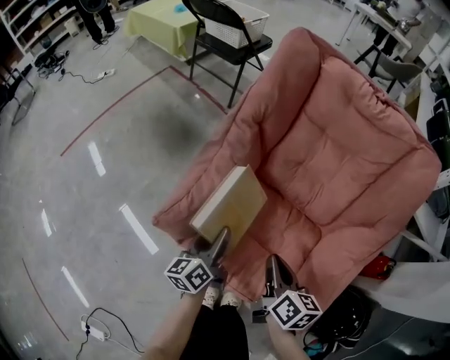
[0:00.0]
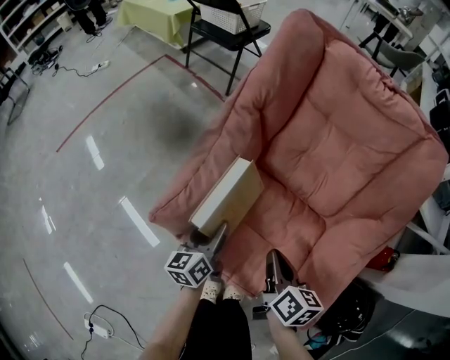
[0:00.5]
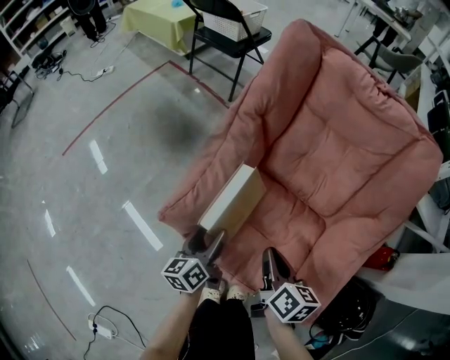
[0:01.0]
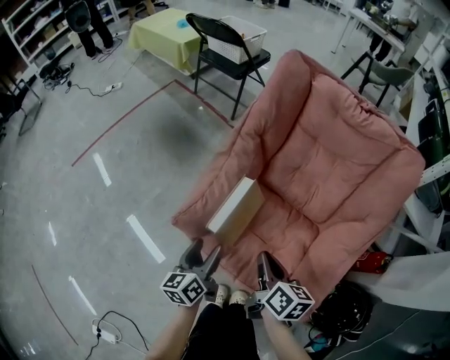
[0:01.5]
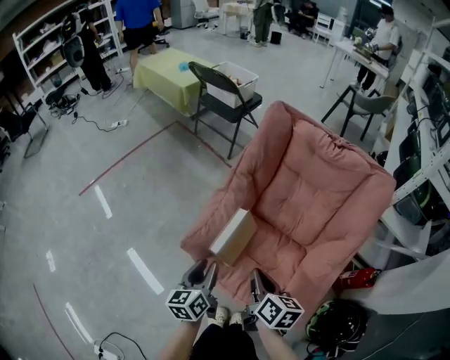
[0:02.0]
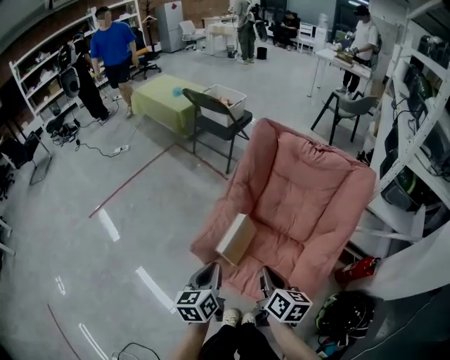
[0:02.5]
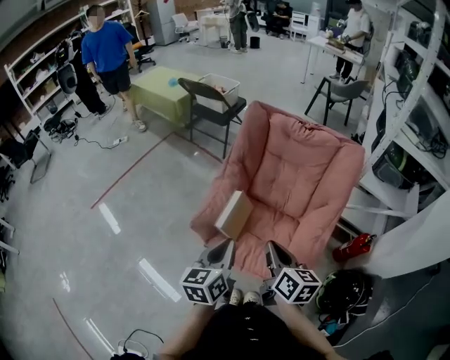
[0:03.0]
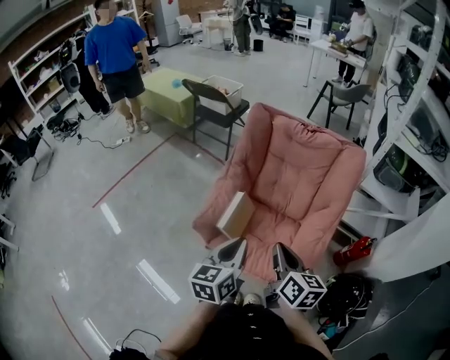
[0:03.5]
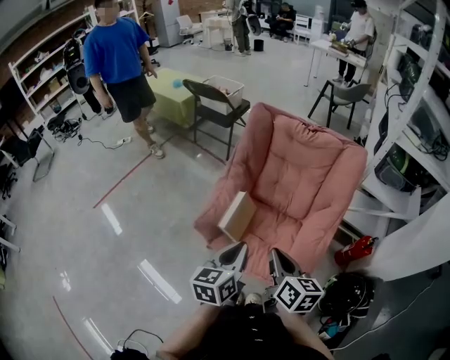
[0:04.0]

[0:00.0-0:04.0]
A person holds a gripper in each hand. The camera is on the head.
0:00.0 to 0:02.0: The right gripper moves upward and to the left, about 15 cm, while the left gripper shifts about 20 cm upward and backward.
0:02.0 to 0:04.0: The left gripper moves upward, to the right and backward, some 25 cm, changes its angle by some 20 degrees, and closes up. Meanwhile the right gripper goes roughly 20 cm upward and backward.

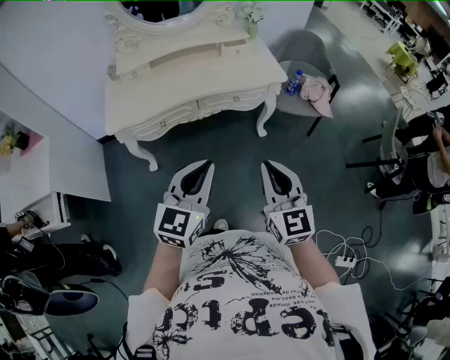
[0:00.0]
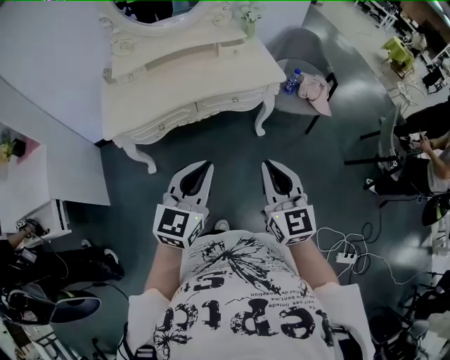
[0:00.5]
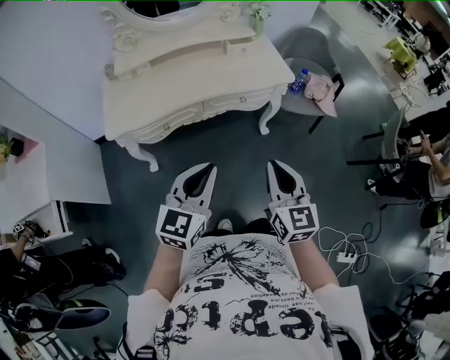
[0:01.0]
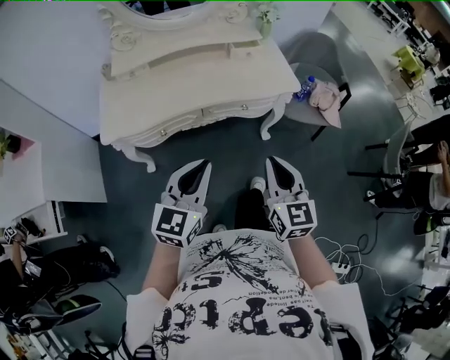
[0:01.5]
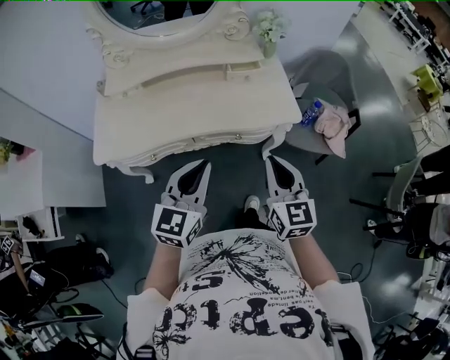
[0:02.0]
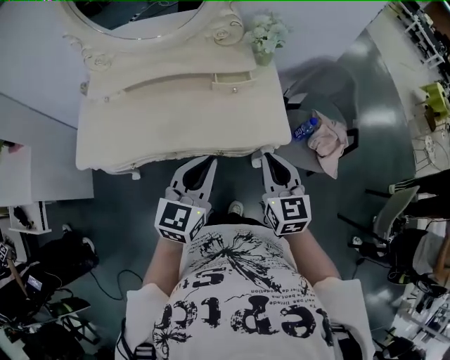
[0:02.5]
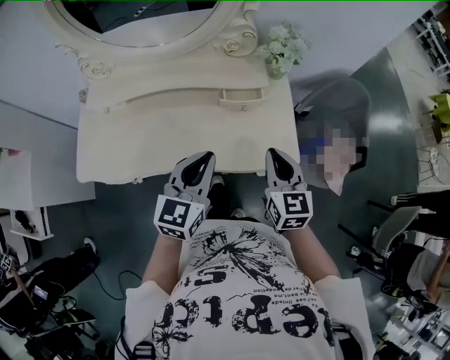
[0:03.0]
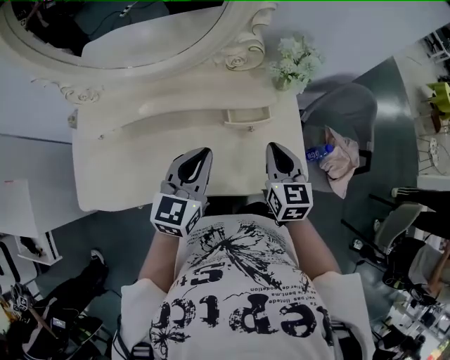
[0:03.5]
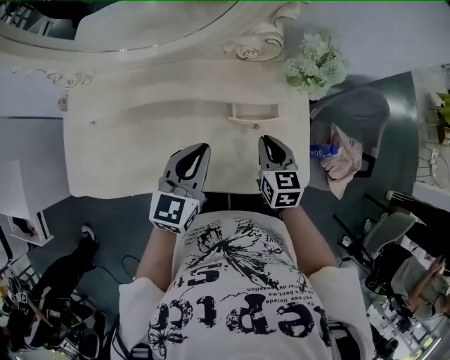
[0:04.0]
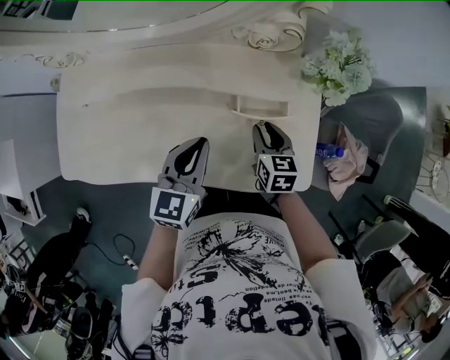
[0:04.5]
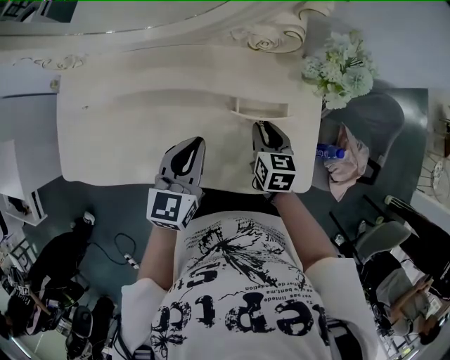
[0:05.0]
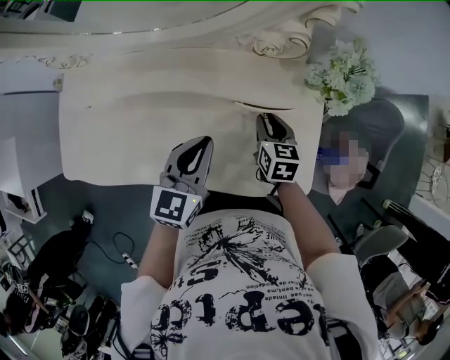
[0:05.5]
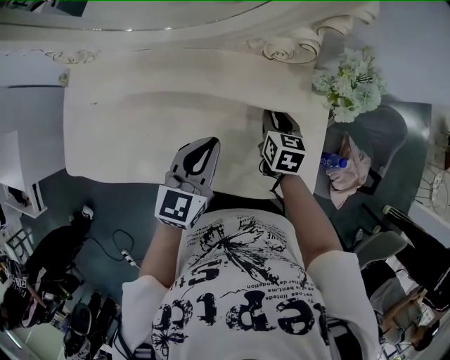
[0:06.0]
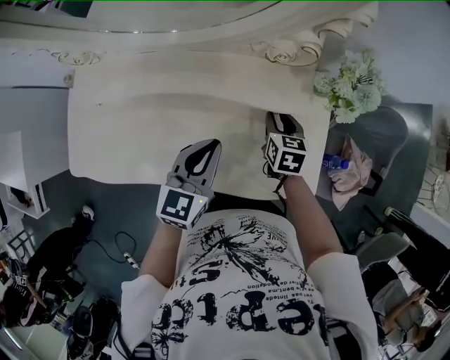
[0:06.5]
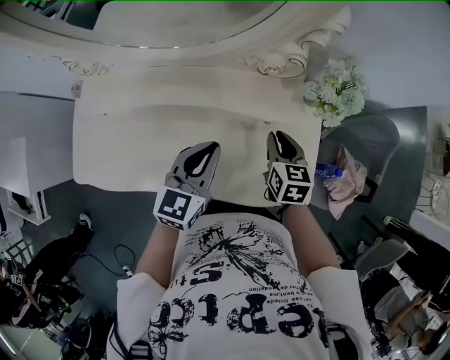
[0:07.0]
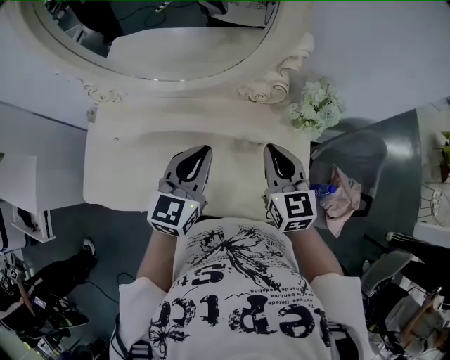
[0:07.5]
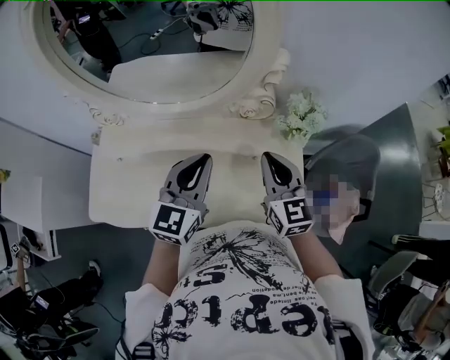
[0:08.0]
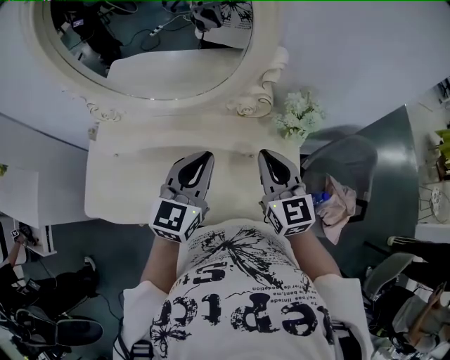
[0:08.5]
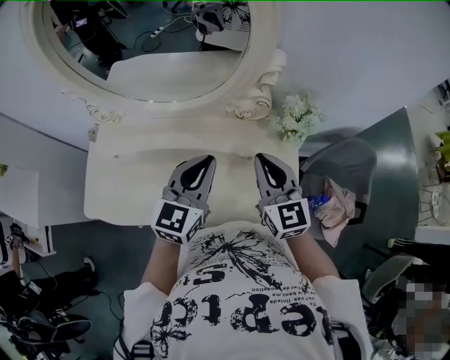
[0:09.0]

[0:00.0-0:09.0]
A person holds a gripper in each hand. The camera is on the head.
0:00.0 to 0:02.0: The two grippers go roughly 30 cm forward.
0:02.0 to 0:04.5: Both grippers move forward and downward, approximately 50 cm. The right gripper swivels about 30 degrees, and opens its fingers. Meanwhile the left gripper swivels roughly 20 degrees.
0:04.5 to 0:07.0: The right gripper goes roughly 5 cm upward. The left gripper shifts by some 5 cm.
0:07.0 to 0:09.0: The right gripper shifts some 20 cm upward, and swivels roughly 30 degrees. The left gripper moves upward, approximately 15 cm.

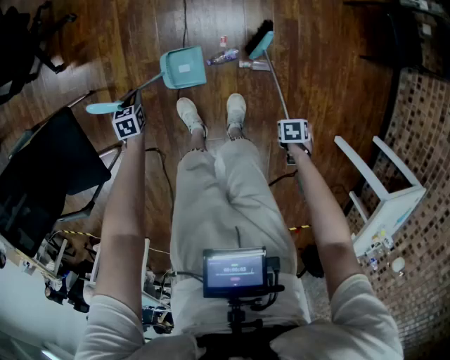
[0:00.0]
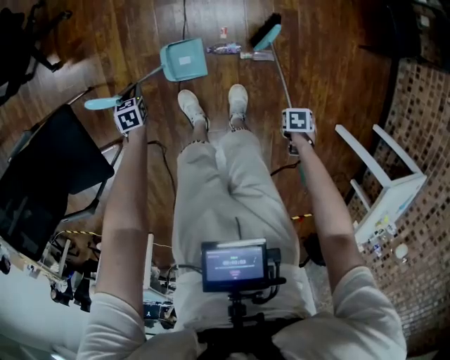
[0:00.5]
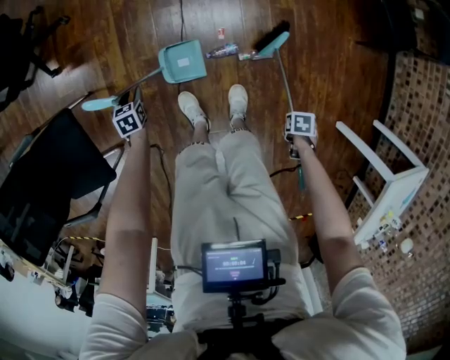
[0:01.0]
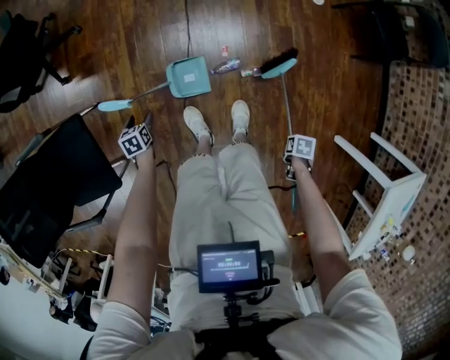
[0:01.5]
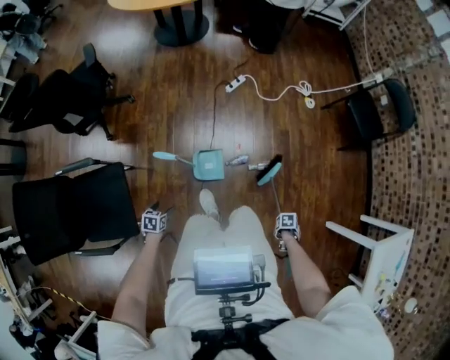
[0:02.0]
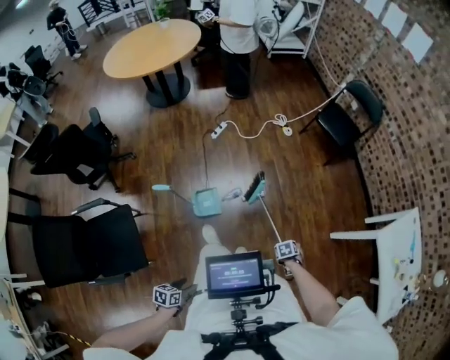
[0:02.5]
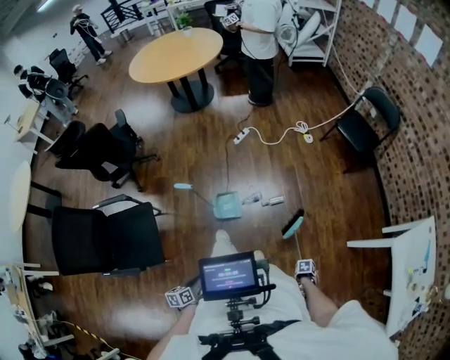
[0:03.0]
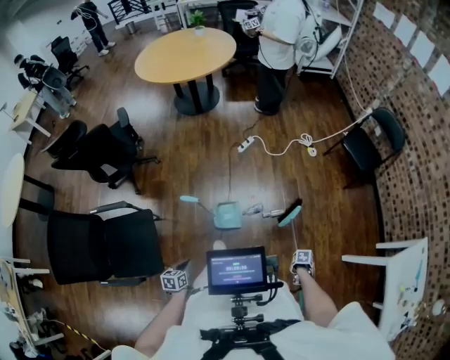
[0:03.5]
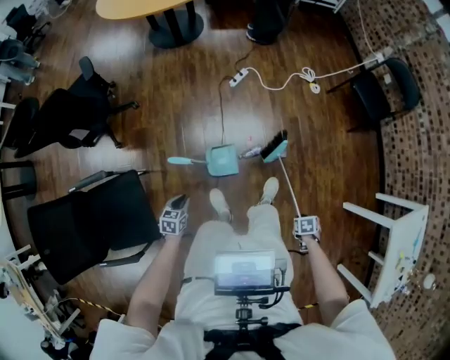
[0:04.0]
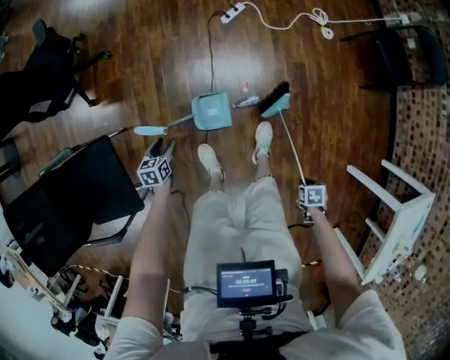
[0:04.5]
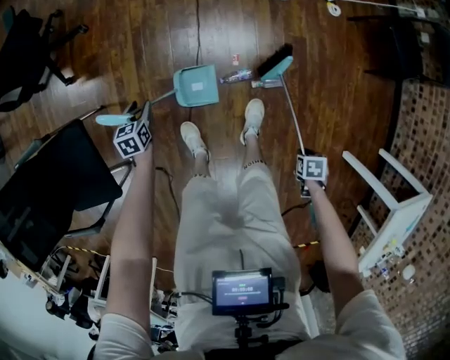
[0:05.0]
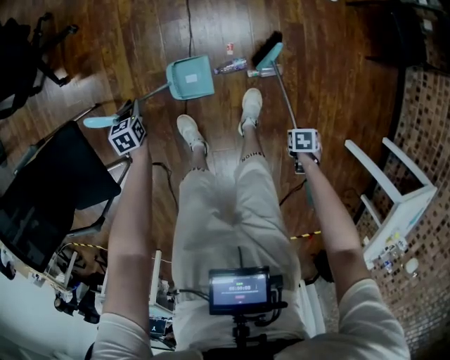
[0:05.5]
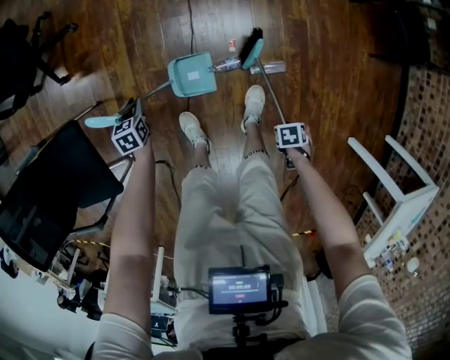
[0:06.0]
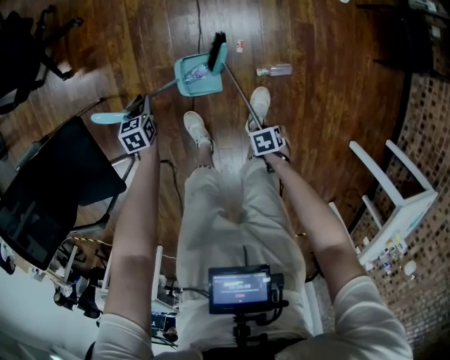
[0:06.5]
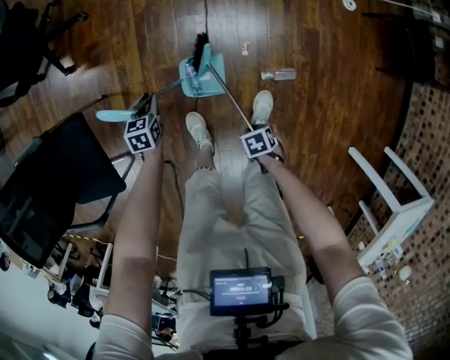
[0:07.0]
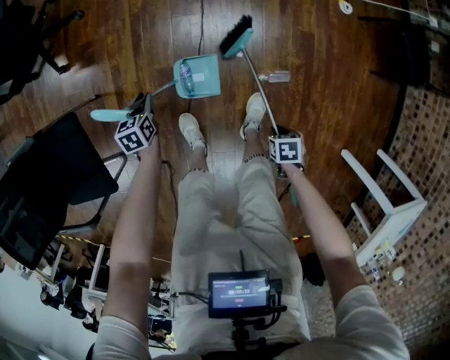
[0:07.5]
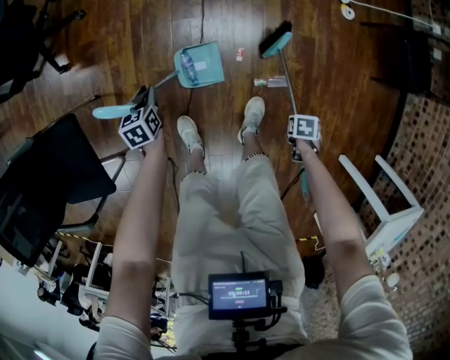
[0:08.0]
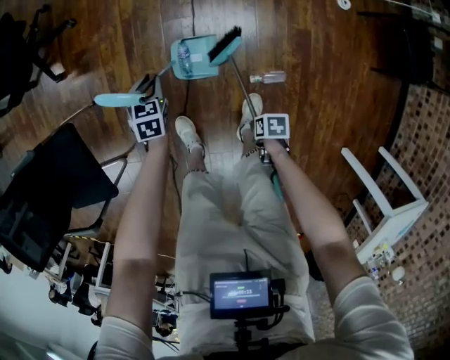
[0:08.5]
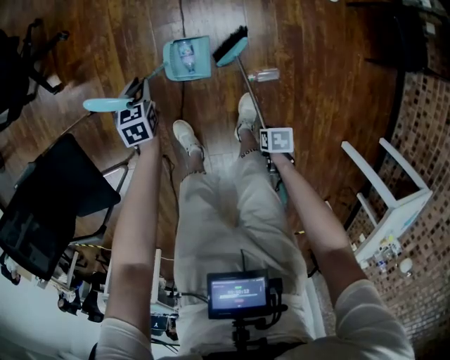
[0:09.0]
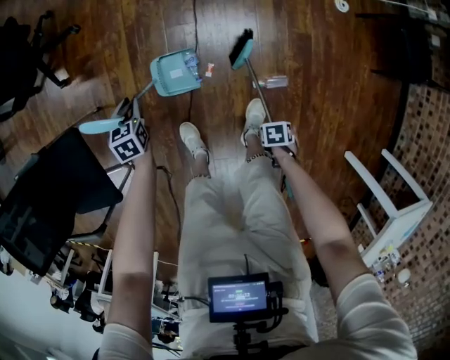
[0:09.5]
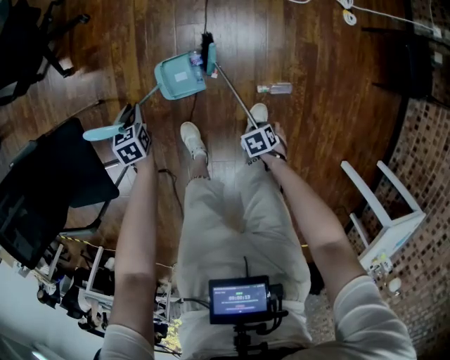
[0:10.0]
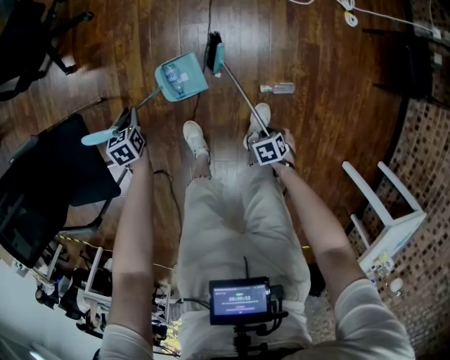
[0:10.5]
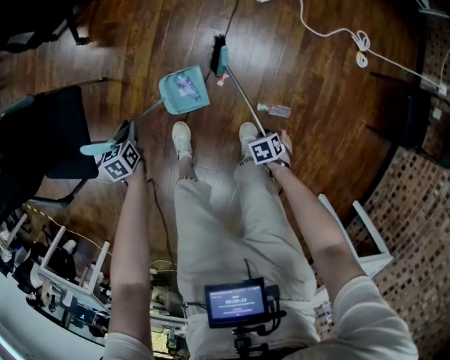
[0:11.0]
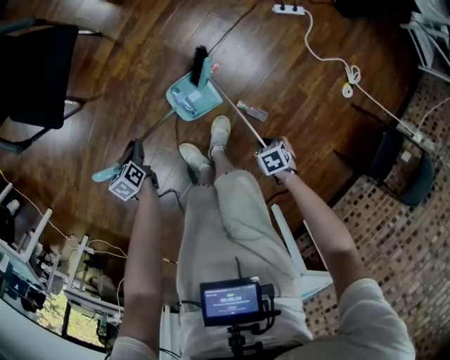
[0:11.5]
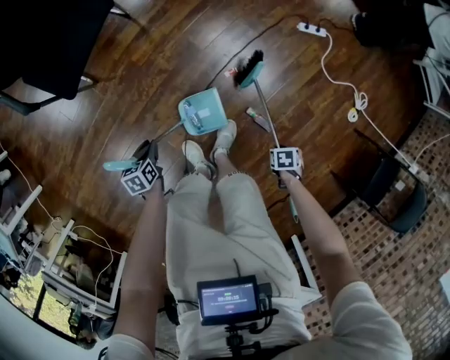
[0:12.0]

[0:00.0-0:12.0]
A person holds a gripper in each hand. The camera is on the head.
0:00.0 to 0:02.0: The left gripper changes place by some 30 cm, and opens its fingers.
0:02.0 to 0:04.0: The left gripper closes.
0:04.0 to 0:06.0: The left gripper is displaced downward by about 25 cm, turns by about 20 degrees, and opens, then closes once more.
0:06.0 to 0:08.0: The left gripper shifts by some 5 cm.
0:08.0 to 0:10.0: The left gripper moves roughly 5 cm.
0:10.0 to 0:12.0: The left gripper moves about 40 cm, and rotates around the line of its fingers by approximately 50 degrees, counterclockwise from behind.

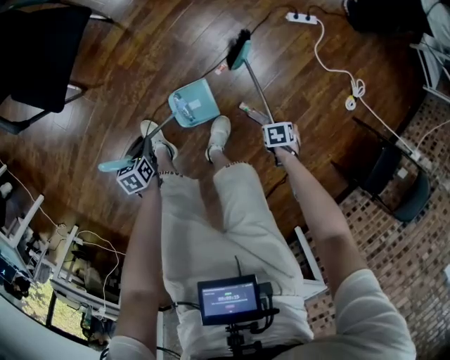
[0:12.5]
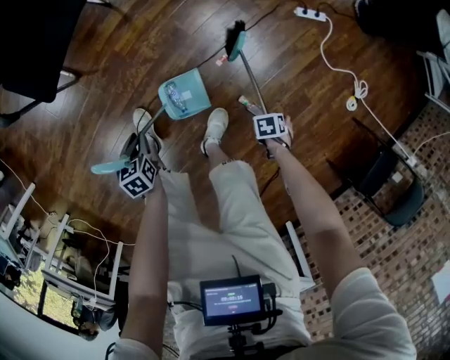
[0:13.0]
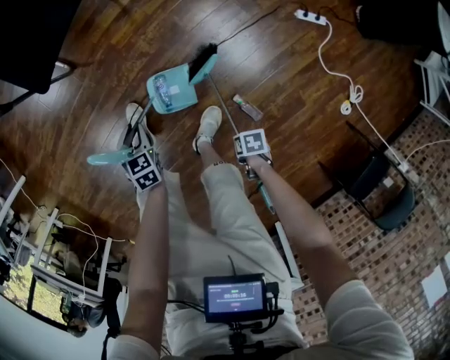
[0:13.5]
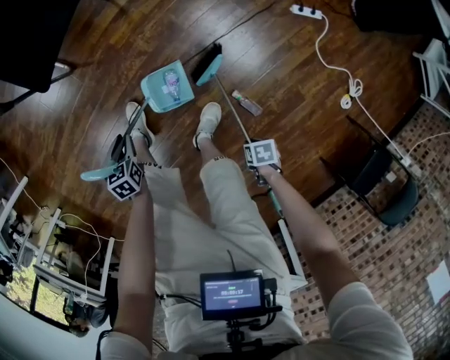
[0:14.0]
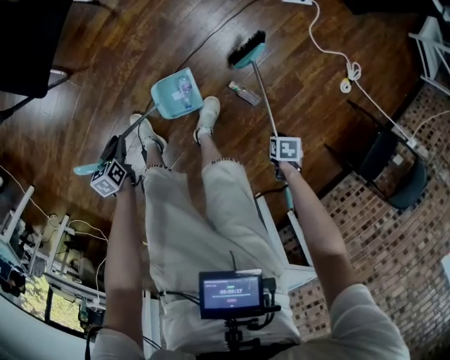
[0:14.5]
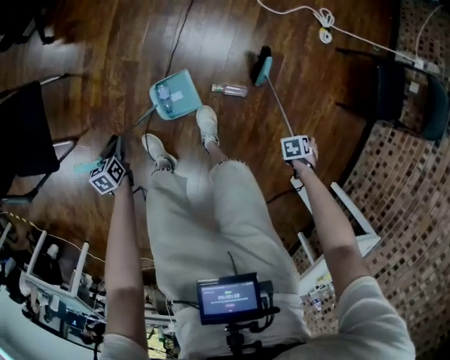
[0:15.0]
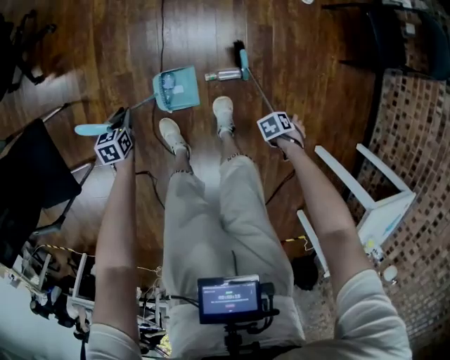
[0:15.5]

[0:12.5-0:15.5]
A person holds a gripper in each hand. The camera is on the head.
0:14.0 to 0:15.5: The left gripper shifts by about 30 cm, and swivels about 60 degrees.
